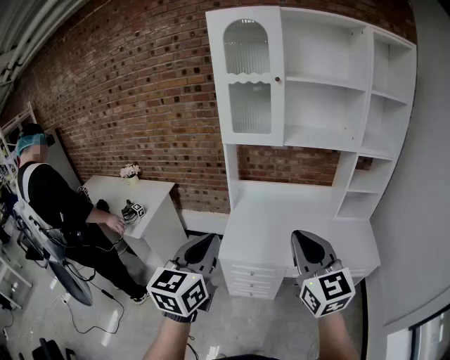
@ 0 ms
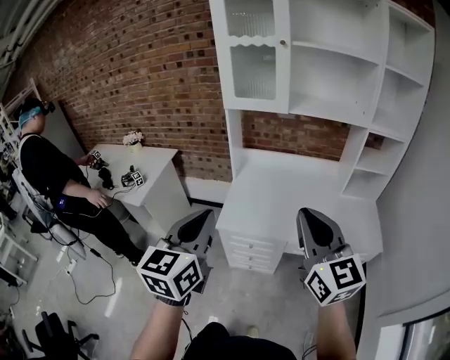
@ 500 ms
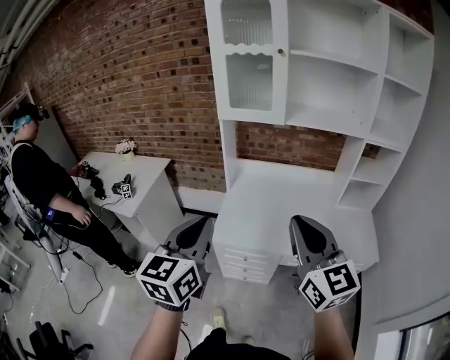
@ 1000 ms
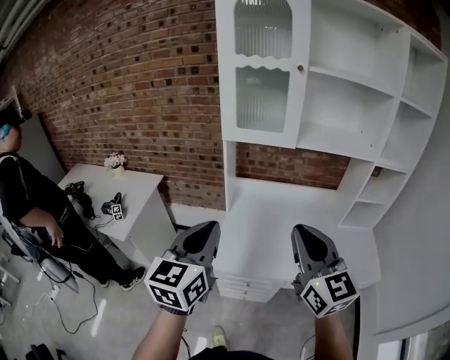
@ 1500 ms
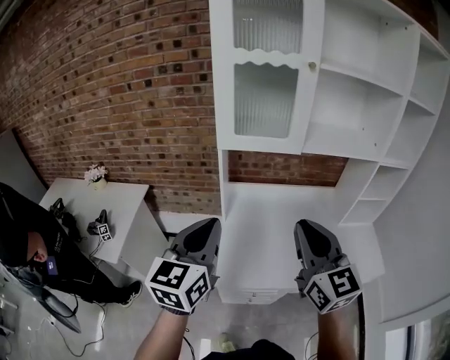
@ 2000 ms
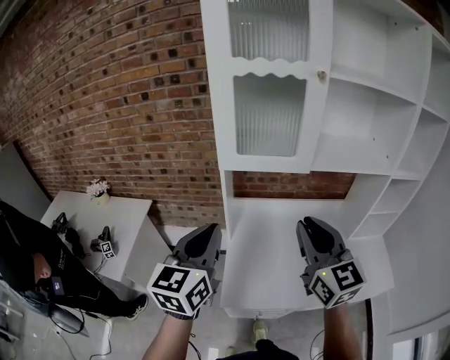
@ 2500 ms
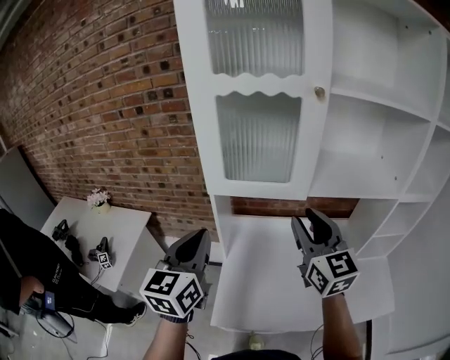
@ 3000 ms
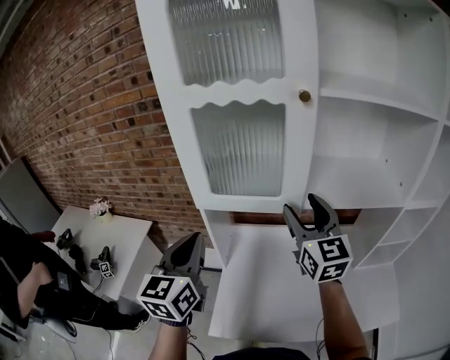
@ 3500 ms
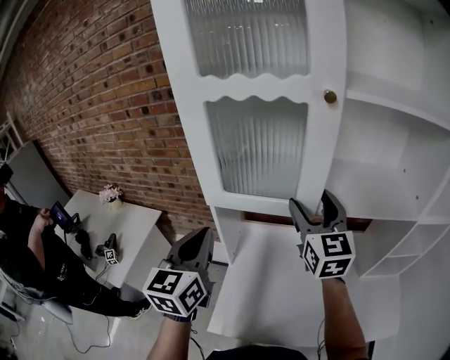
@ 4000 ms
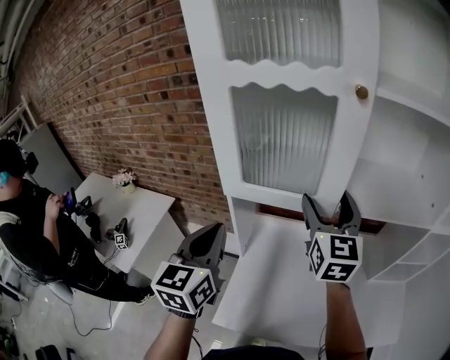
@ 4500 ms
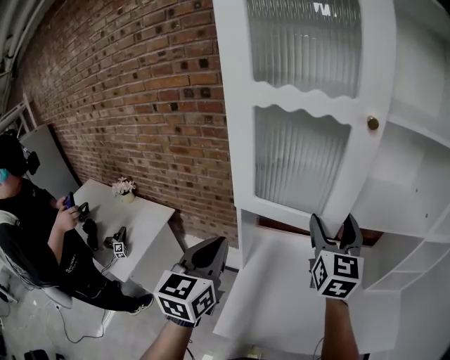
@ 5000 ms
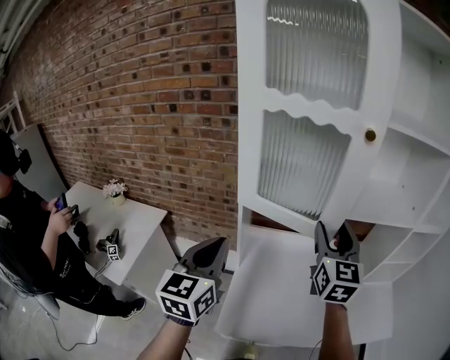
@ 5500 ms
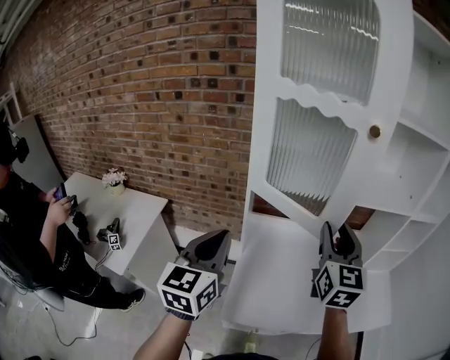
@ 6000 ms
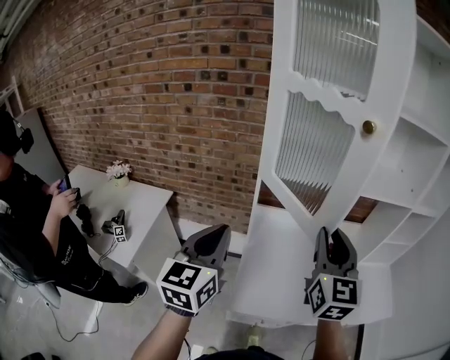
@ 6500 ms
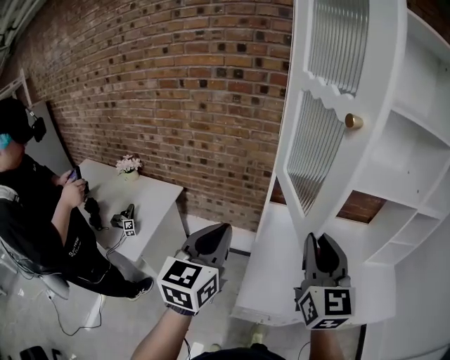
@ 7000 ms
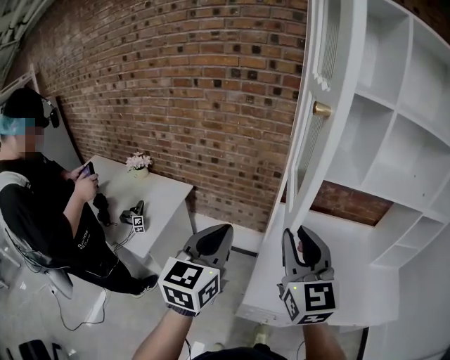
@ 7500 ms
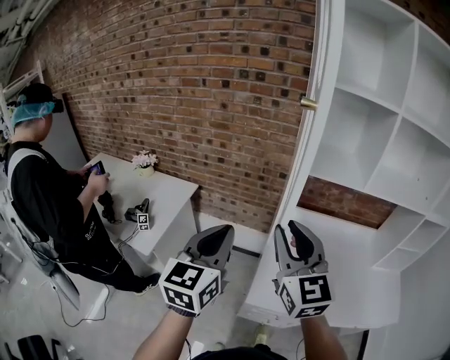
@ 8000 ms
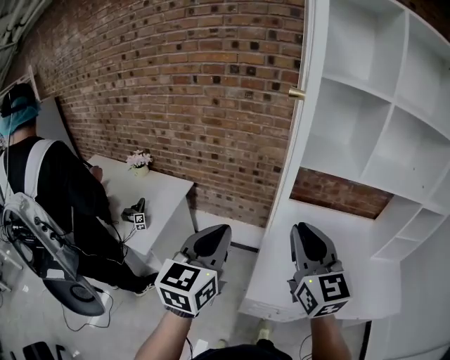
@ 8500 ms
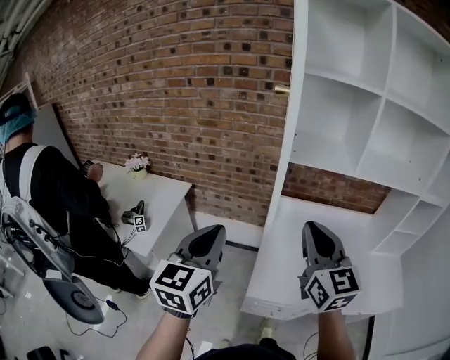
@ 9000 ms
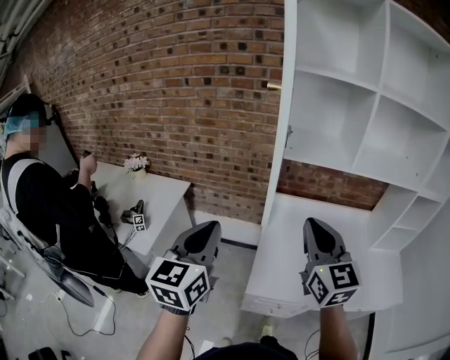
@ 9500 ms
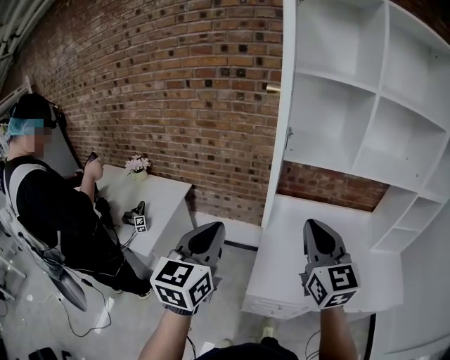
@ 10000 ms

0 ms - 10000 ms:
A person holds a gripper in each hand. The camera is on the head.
0 ms - 2000 ms: The two grippers go some 25 cm forward.
2000 ms - 4000 ms: The right gripper goes approximately 35 cm forward, and opens its fingers. The left gripper moves forward, approximately 20 cm.
4000 ms - 6000 ms: The left gripper heads backward and to the left, covering some 10 cm, while the right gripper heads backward, covering approximately 15 cm, and closes up.
6000 ms - 8000 ms: The right gripper heads to the left and backward, covering some 25 cm, and swivels approximately 30 degrees. Meanwhile the left gripper heads to the left and backward, covering approximately 15 cm.
8000 ms - 10000 ms: The right gripper is displaced to the right by approximately 10 cm.

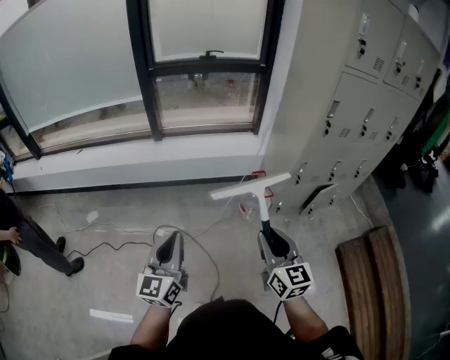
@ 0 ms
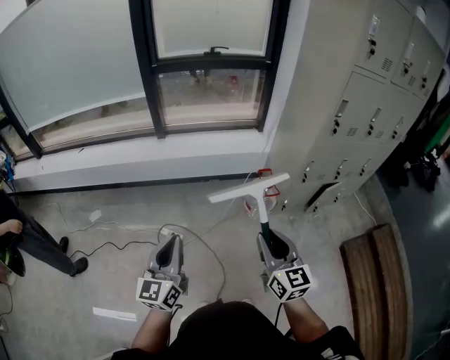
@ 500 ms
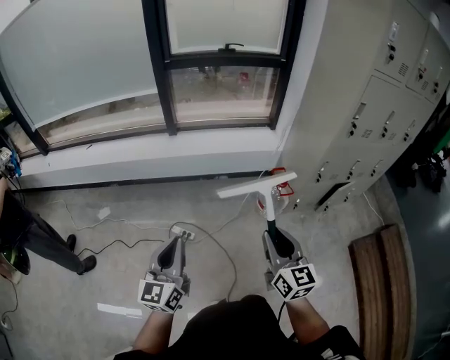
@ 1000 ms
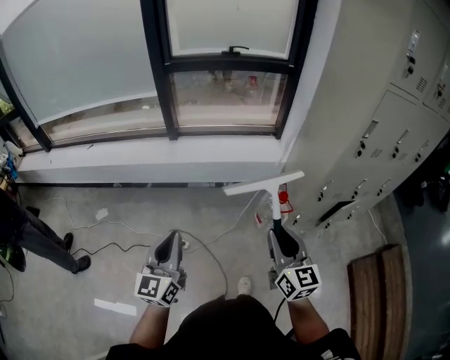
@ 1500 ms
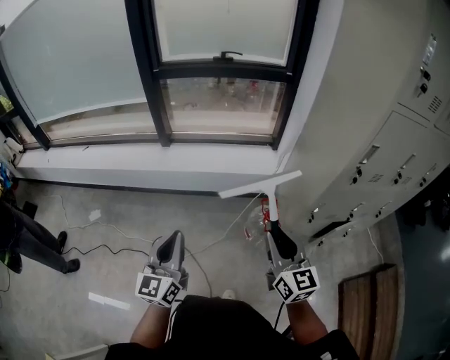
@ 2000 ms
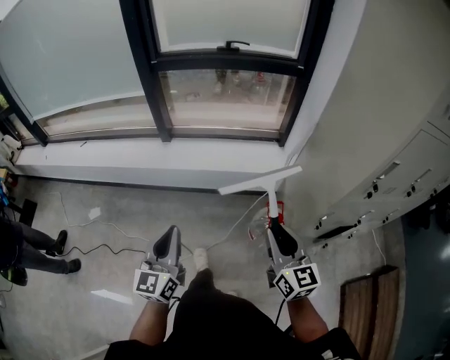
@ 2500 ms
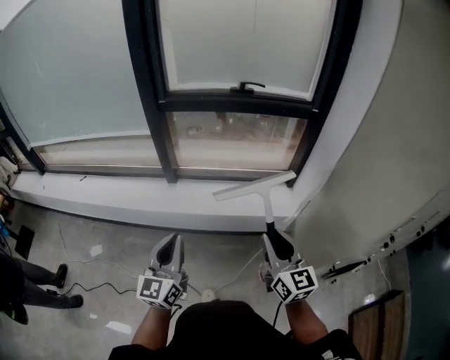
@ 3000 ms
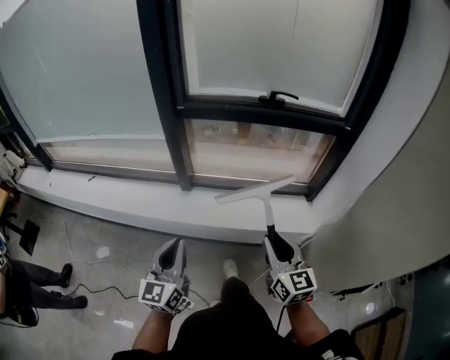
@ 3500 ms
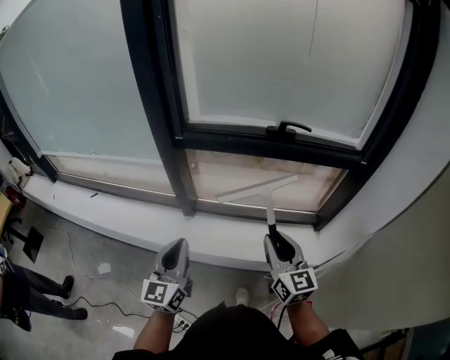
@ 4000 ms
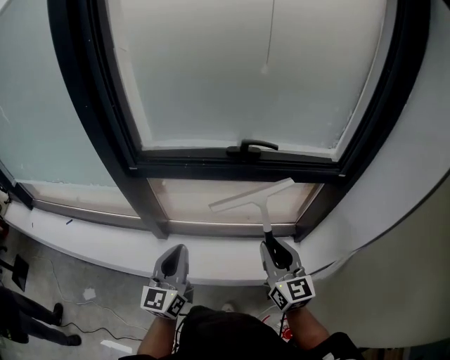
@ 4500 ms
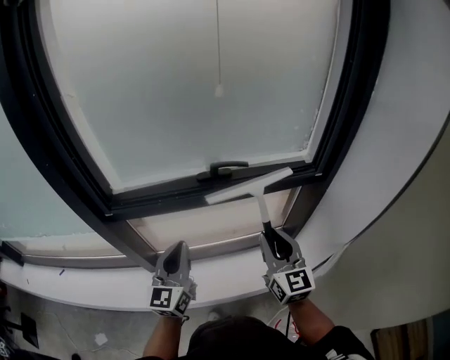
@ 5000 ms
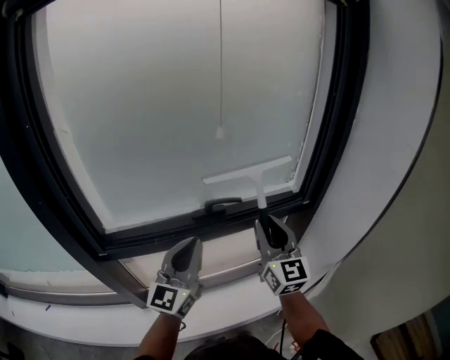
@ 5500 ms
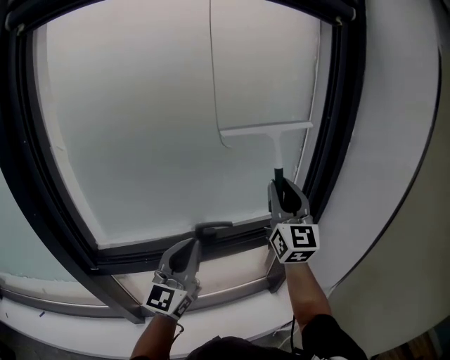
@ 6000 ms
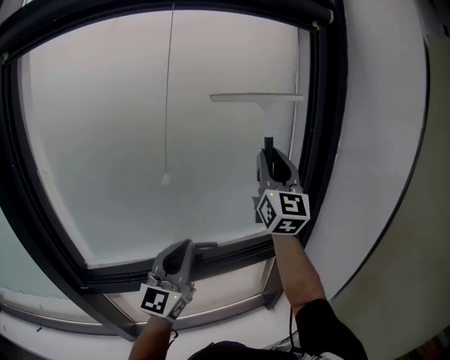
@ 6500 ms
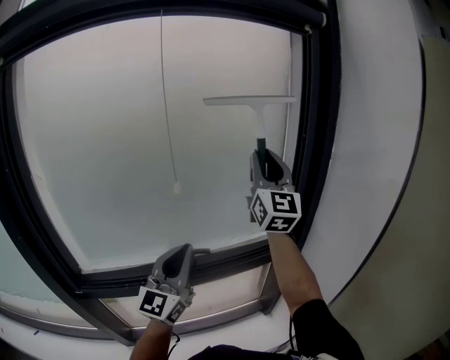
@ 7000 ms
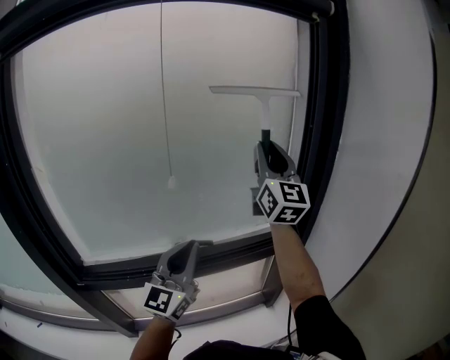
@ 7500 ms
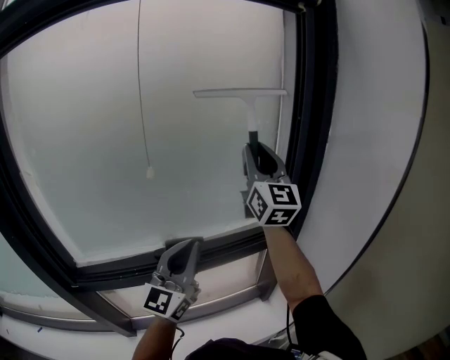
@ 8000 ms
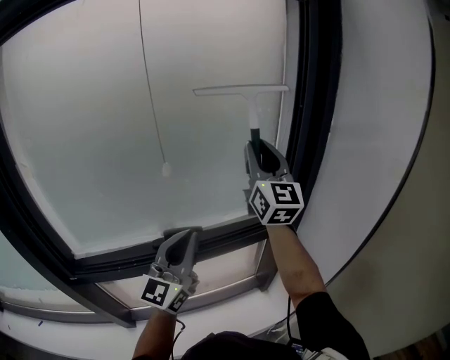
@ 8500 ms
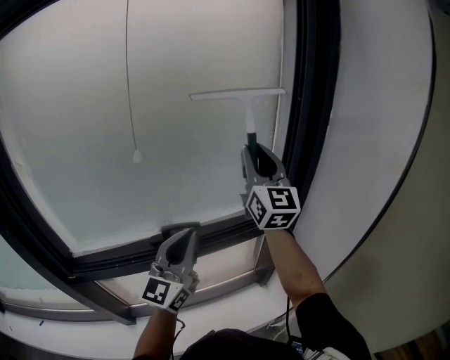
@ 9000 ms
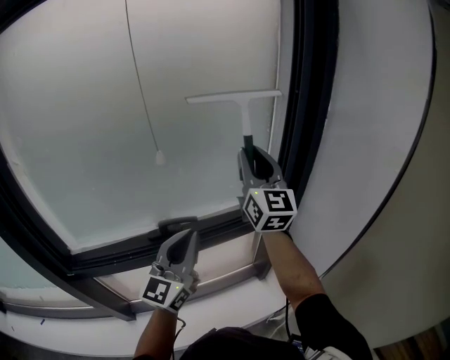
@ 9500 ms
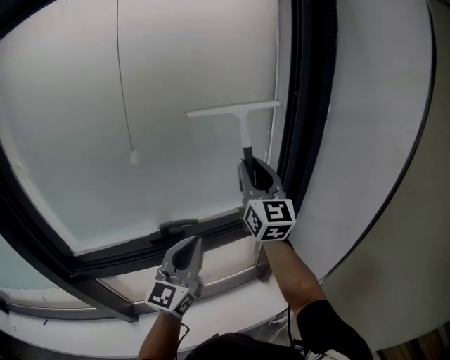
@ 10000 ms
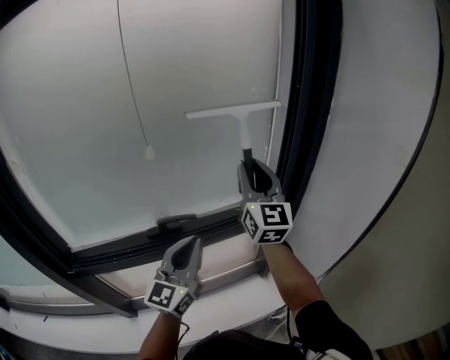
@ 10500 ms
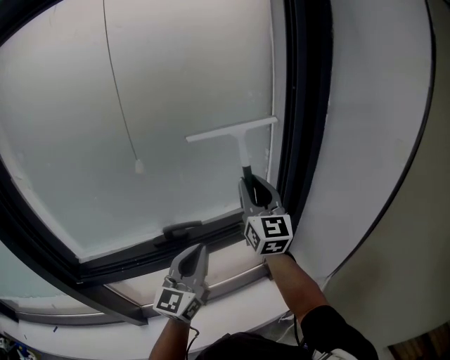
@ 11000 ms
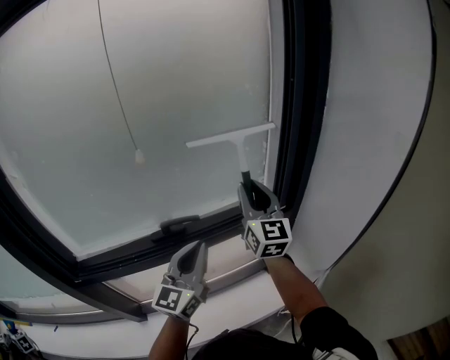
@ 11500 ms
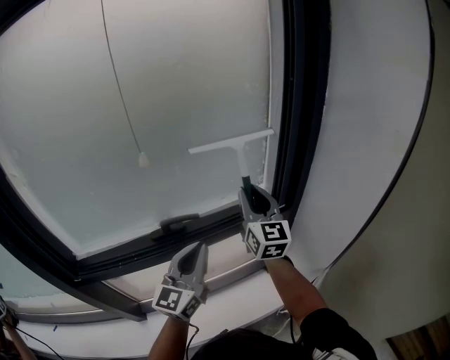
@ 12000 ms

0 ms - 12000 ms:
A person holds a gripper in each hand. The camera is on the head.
0 ms - 2000 ms: Both grippers travel together forward, about 20 cm.
2000 ms - 4000 ms: The two grippers travel together, forward, approximately 50 cm.
4000 ms - 6000 ms: The left gripper moves some 40 cm, and swivels roughly 40 degrees; the right gripper moves some 50 cm, and rotates some 50 degrees.
6000 ms - 8000 ms: The right gripper heads forward and upward, covering some 10 cm, while the left gripper travels to the right and forward by about 10 cm.
8000 ms - 10000 ms: The right gripper is displaced downward by about 10 cm.
10000 ms - 12000 ms: The right gripper heads downward, covering about 10 cm.

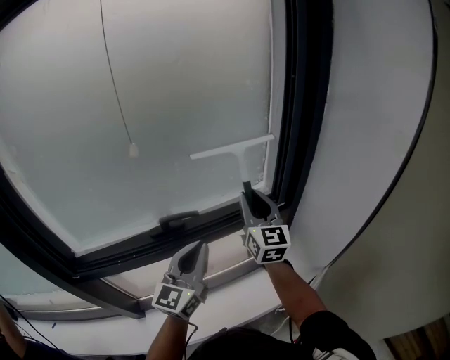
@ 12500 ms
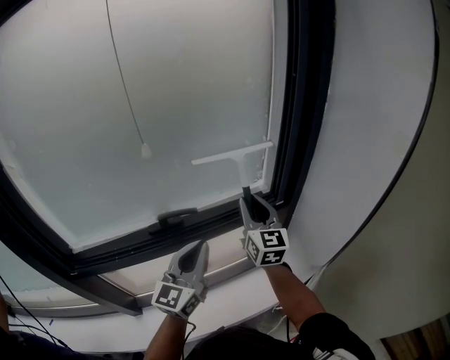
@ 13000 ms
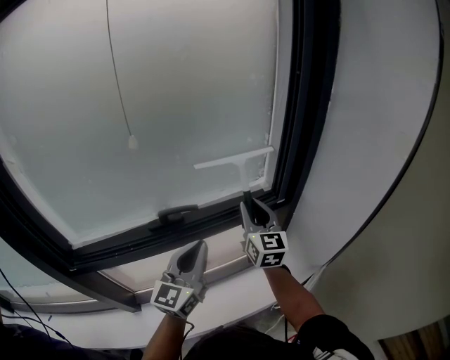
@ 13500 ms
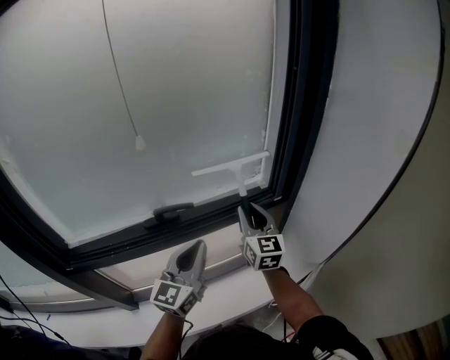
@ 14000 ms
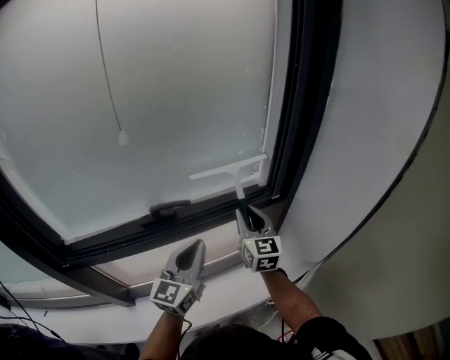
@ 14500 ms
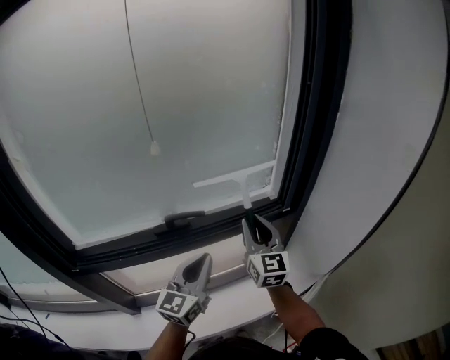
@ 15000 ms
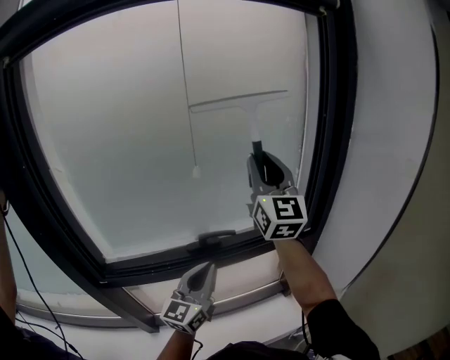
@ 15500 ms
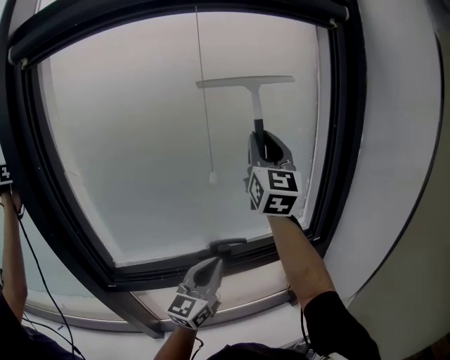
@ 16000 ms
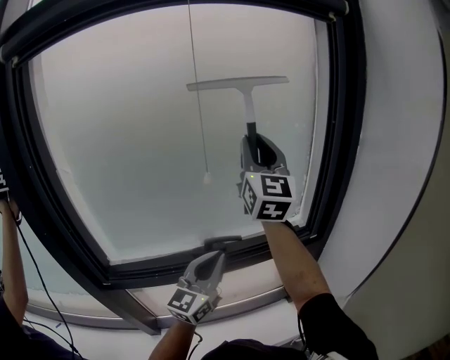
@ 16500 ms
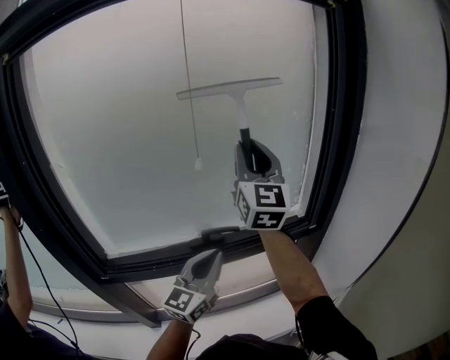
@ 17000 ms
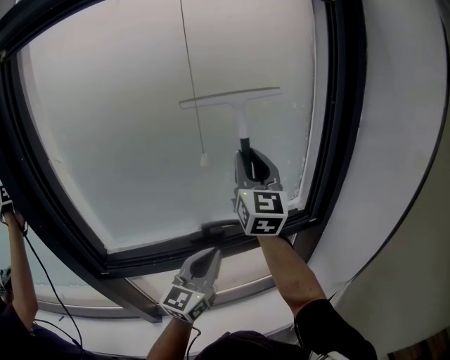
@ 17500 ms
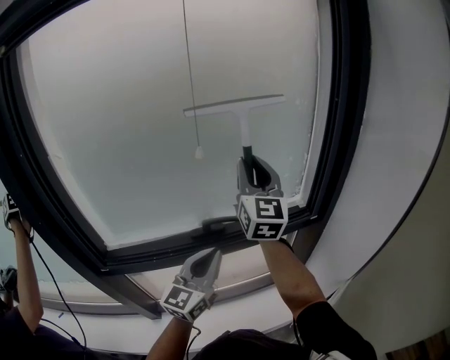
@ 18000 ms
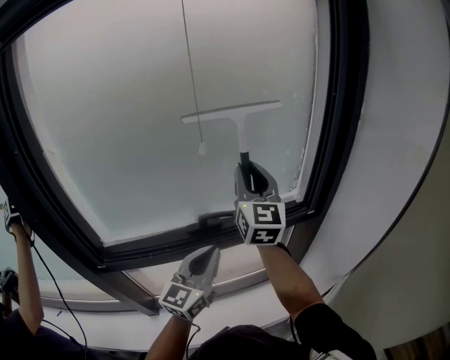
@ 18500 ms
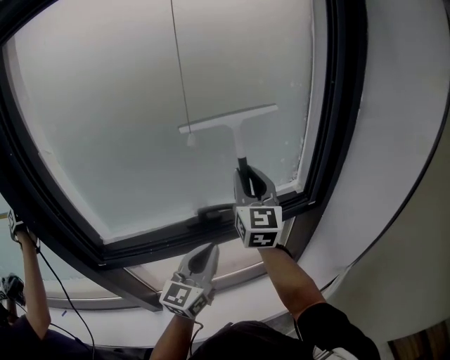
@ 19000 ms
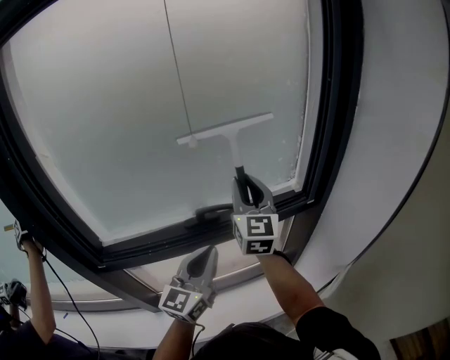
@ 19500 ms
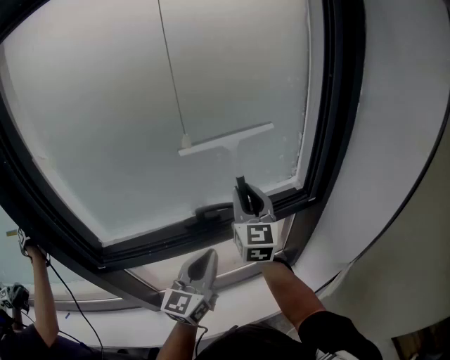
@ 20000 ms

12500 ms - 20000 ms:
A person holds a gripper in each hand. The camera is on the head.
12500 ms - 14500 ms: The right gripper is displaced downward by approximately 10 cm.
14500 ms - 16500 ms: The right gripper heads upward, covering approximately 35 cm, and tilts its fingers approximately 30 degrees upward; the left gripper moves upward and to the left, approximately 10 cm.
16500 ms - 18000 ms: The right gripper heads downward, covering approximately 10 cm.
18000 ms - 20000 ms: The right gripper goes approximately 15 cm downward.
